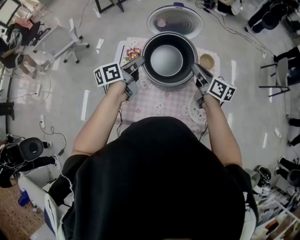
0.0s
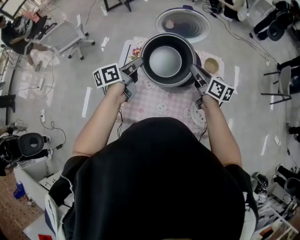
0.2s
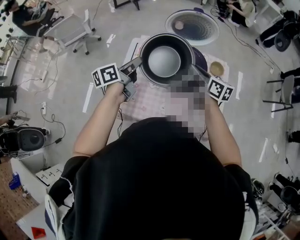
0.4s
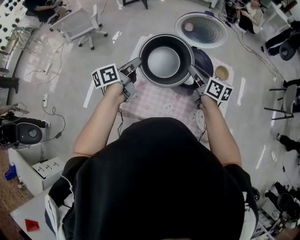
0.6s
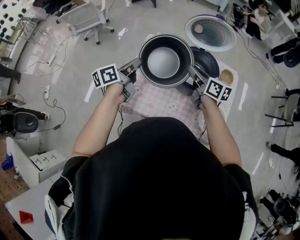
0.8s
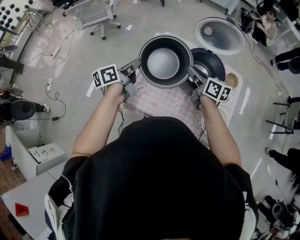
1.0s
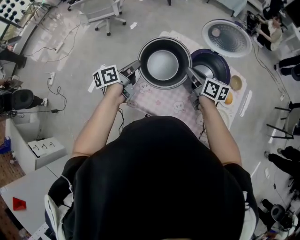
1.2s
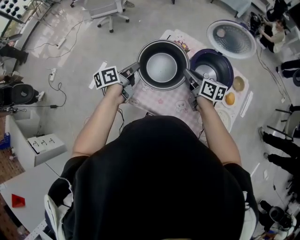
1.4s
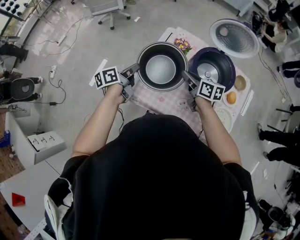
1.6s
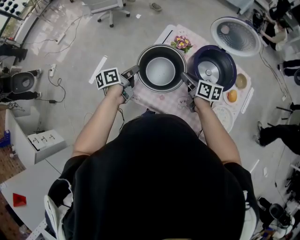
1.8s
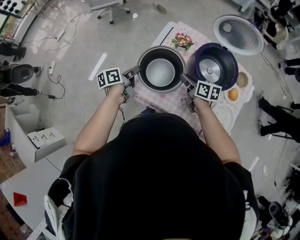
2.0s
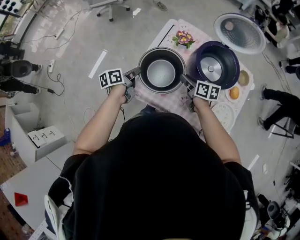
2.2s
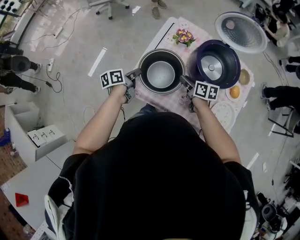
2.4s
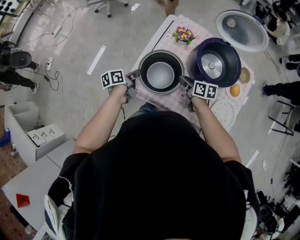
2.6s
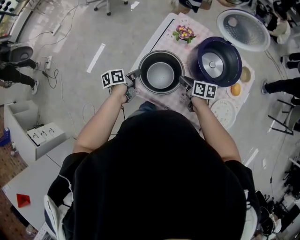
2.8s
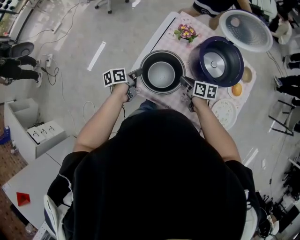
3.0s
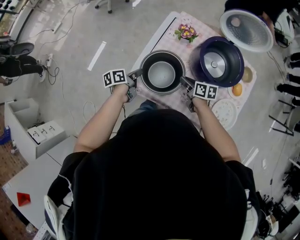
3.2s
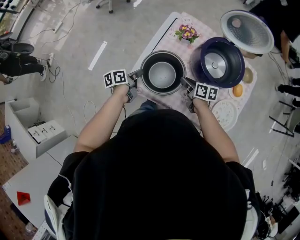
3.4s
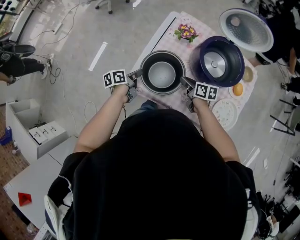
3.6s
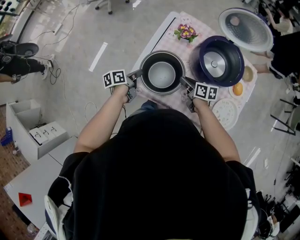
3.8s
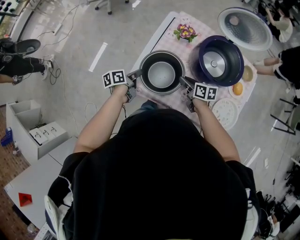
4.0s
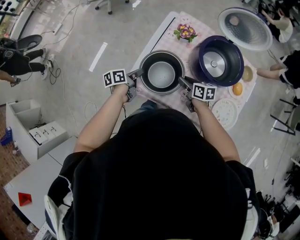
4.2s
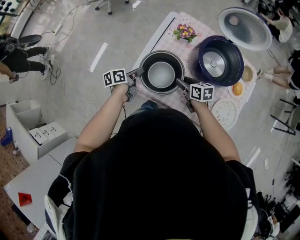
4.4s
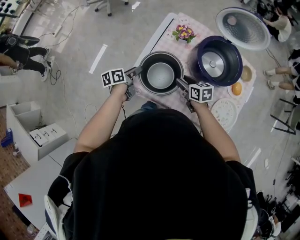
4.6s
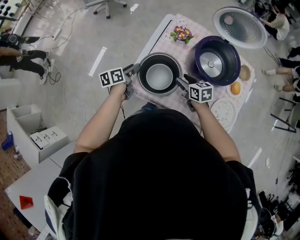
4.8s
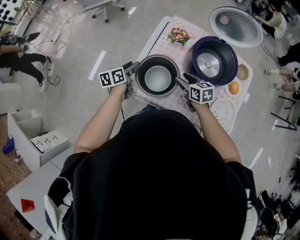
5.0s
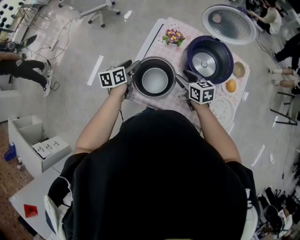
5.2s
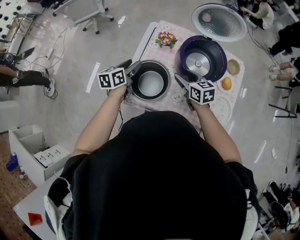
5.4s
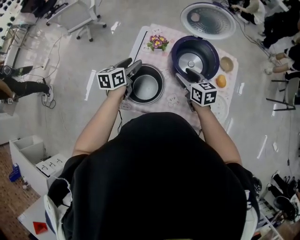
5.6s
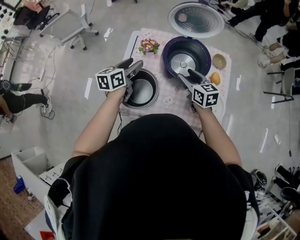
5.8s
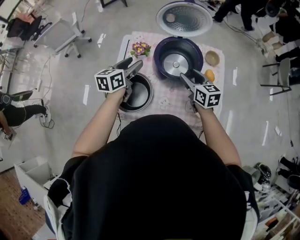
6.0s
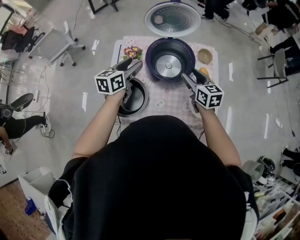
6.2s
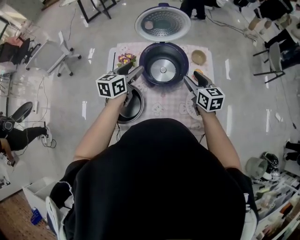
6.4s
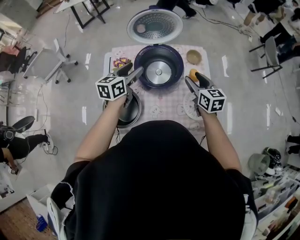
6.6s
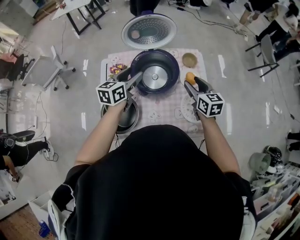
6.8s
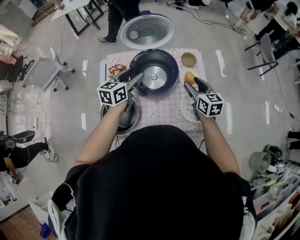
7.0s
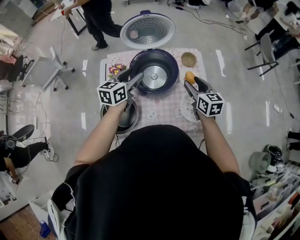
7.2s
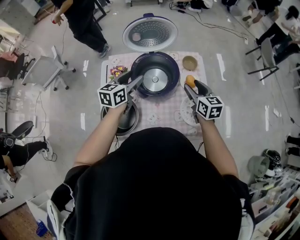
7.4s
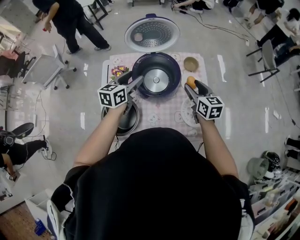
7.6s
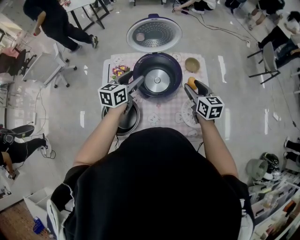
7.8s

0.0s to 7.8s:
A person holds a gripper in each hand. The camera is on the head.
0.0s to 1.6s: The left gripper moves approximately 30 cm, and turns by approximately 30 degrees, while the right gripper changes place by approximately 30 cm, and swivels about 30 degrees.
1.6s to 3.2s: Both grippers move downward, roughly 15 cm.
3.2s to 4.6s: The left gripper opens its fingers. The right gripper opens up.
4.6s to 6.2s: The right gripper shifts by roughly 30 cm, and swivels about 40 degrees; the left gripper moves about 35 cm, and twists some 40 degrees clockwise, seen from behind.
6.2s to 7.8s: The grippers both shift to the right by about 5 cm.

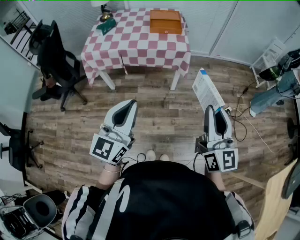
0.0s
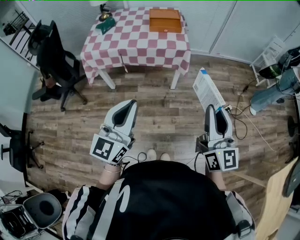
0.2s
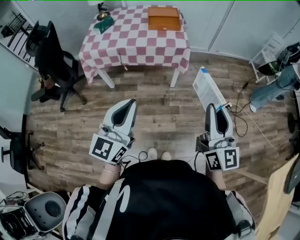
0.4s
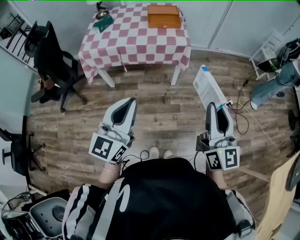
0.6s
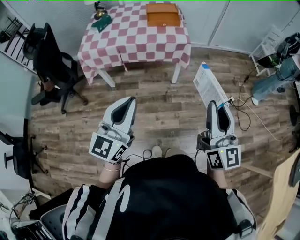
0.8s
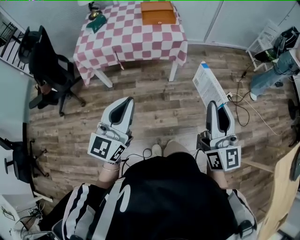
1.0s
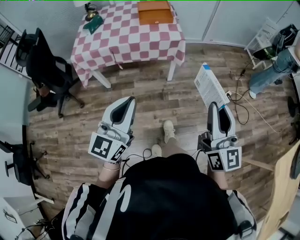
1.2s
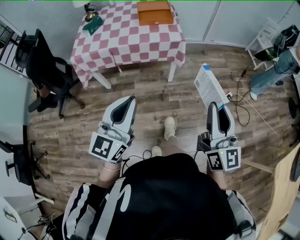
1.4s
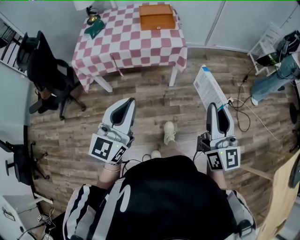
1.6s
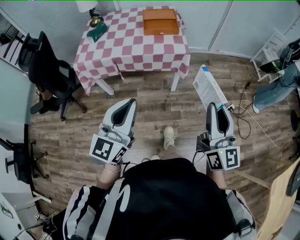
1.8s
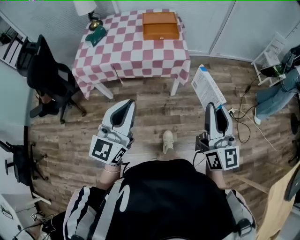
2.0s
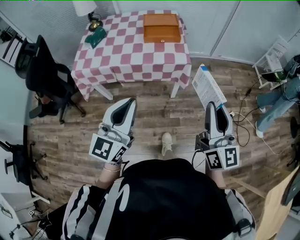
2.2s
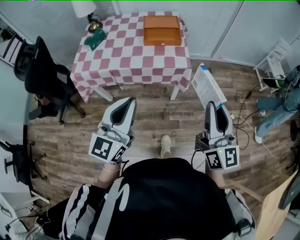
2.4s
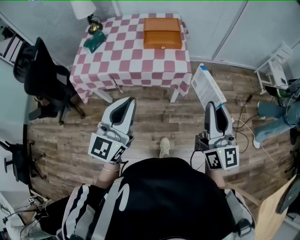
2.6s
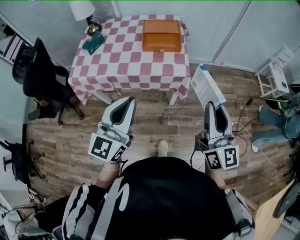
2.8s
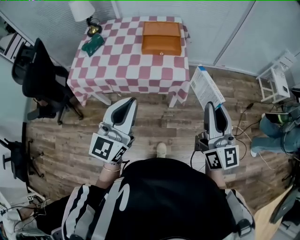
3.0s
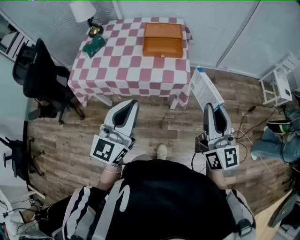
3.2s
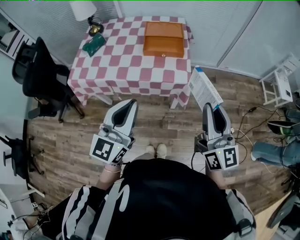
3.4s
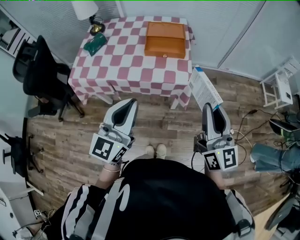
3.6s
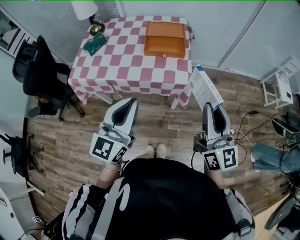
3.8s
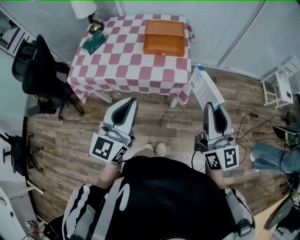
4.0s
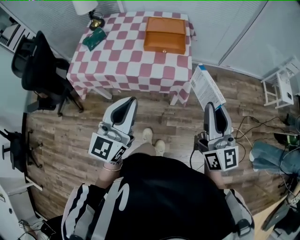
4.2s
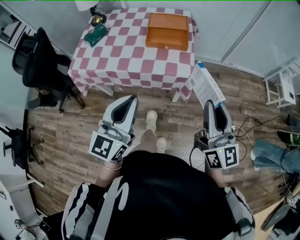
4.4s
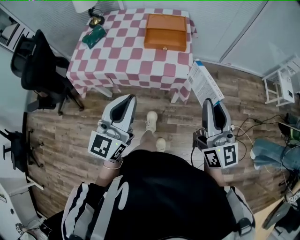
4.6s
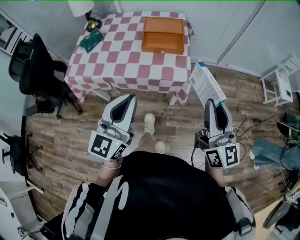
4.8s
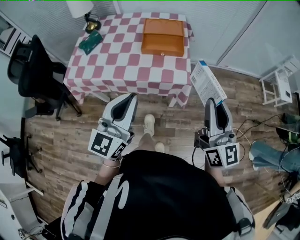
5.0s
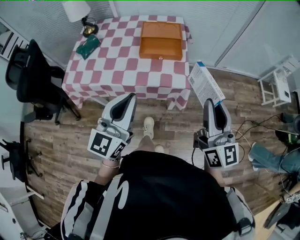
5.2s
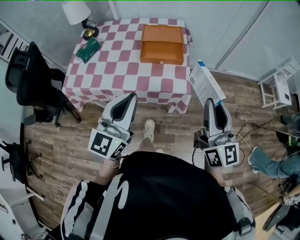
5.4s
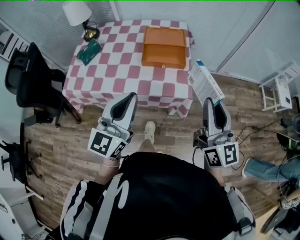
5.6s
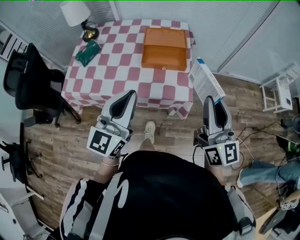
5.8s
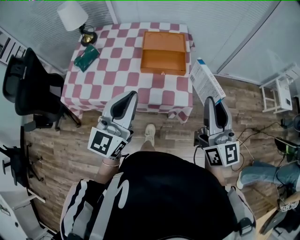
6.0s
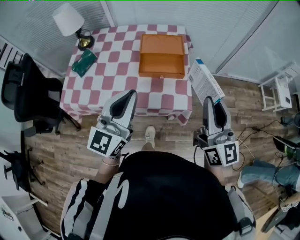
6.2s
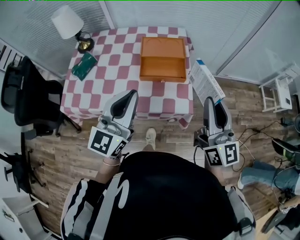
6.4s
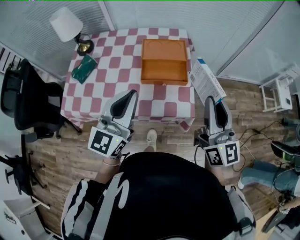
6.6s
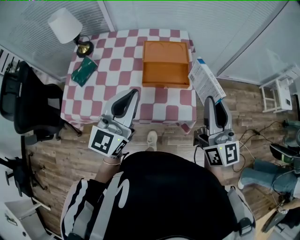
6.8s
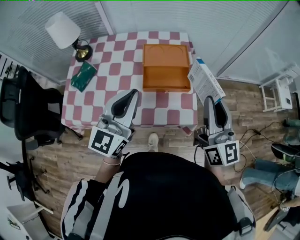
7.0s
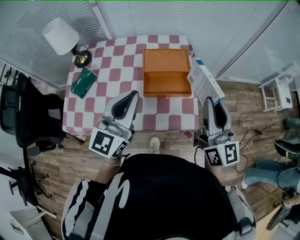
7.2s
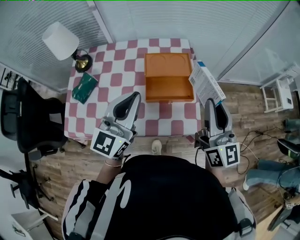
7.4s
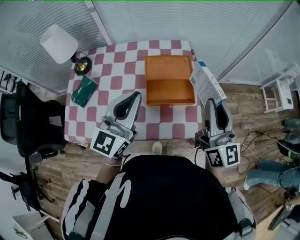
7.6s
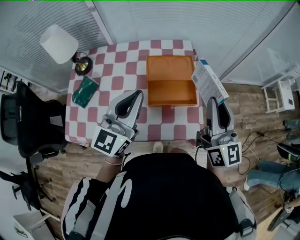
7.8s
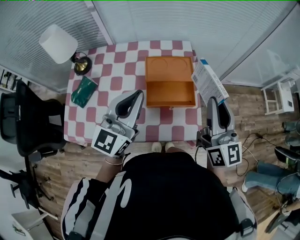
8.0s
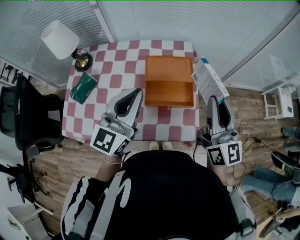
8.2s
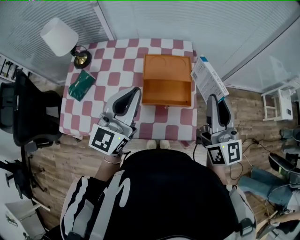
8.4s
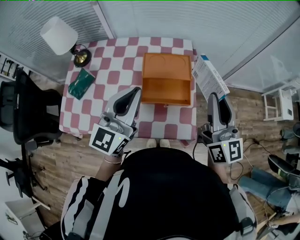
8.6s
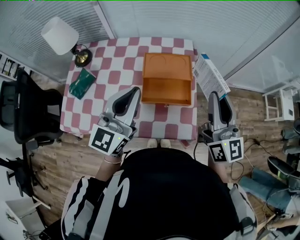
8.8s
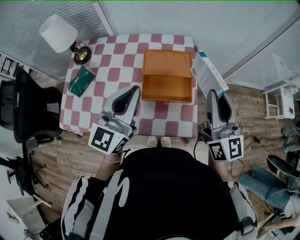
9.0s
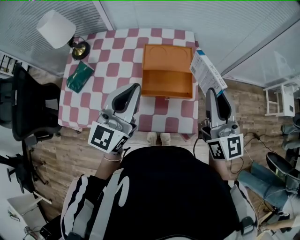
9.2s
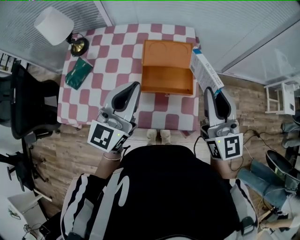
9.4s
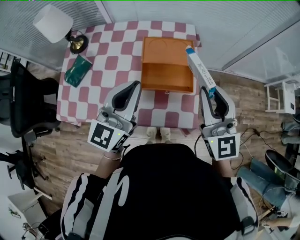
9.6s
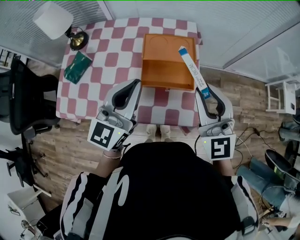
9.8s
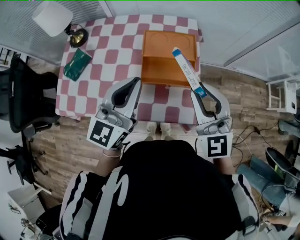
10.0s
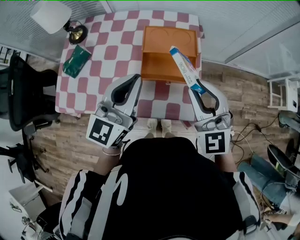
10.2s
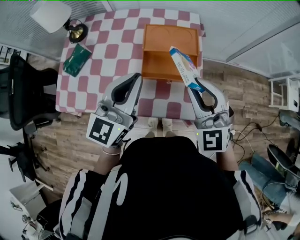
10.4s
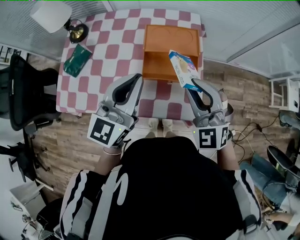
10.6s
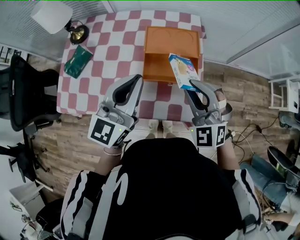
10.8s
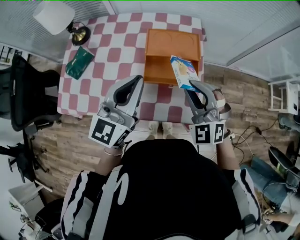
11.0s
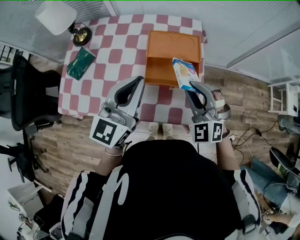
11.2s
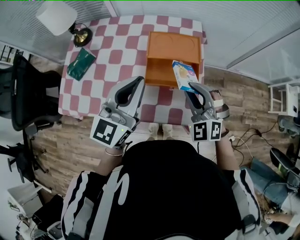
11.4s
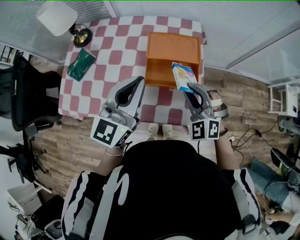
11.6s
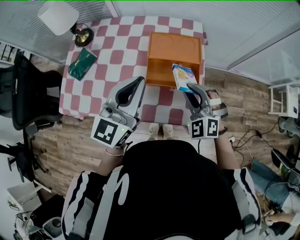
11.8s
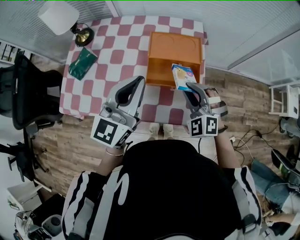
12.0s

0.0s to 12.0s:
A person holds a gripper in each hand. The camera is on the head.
0.0s to 1.6s: The left gripper shifts roughly 5 cm forward.
1.6s to 3.0s: The two grippers go roughly 25 cm forward.
3.0s to 4.4s: The grippers move only a little.
4.4s to 6.0s: The two grippers go approximately 15 cm forward.
6.0s to 7.6s: The right gripper heads forward and to the left, covering approximately 15 cm. Meanwhile the left gripper moves forward, approximately 20 cm.
7.6s to 9.0s: The grippers stay close to where they were, moving slightly.
9.0s to 10.4s: The right gripper goes about 10 cm downward and to the left, and twists some 40 degrees counterclockwise, seen from behind.
10.4s to 12.0s: The right gripper goes about 10 cm downward, and swivels some 30 degrees.

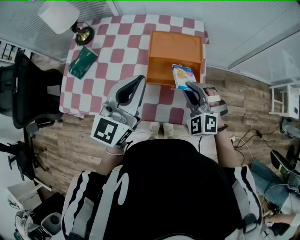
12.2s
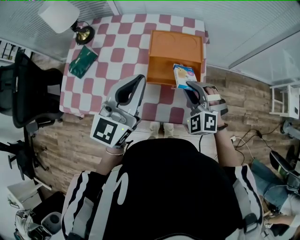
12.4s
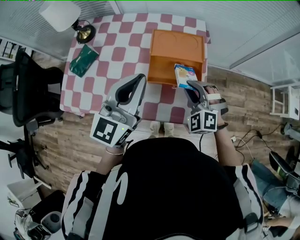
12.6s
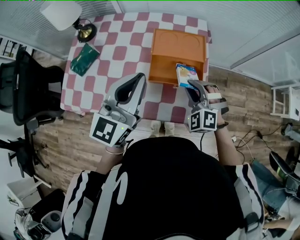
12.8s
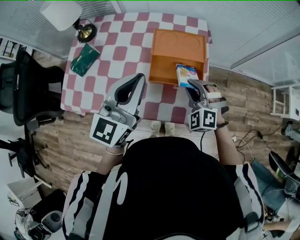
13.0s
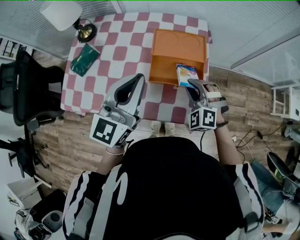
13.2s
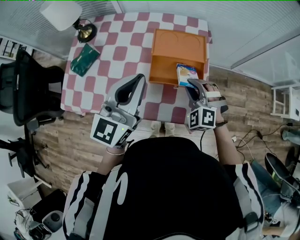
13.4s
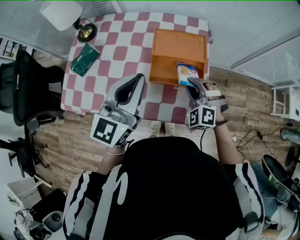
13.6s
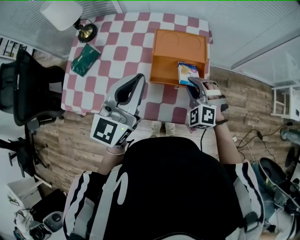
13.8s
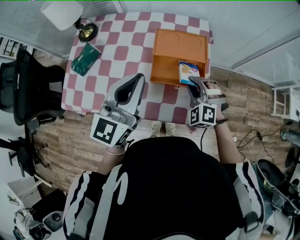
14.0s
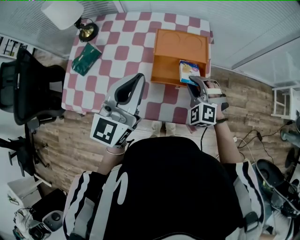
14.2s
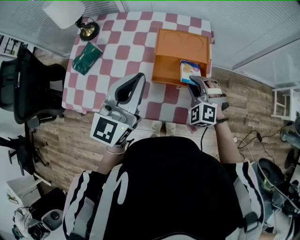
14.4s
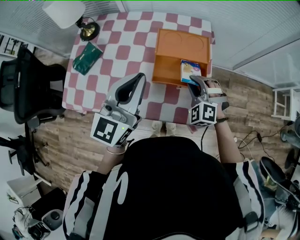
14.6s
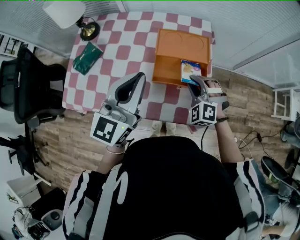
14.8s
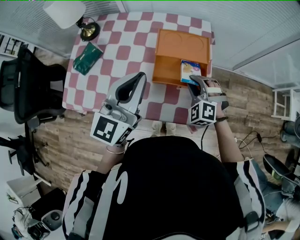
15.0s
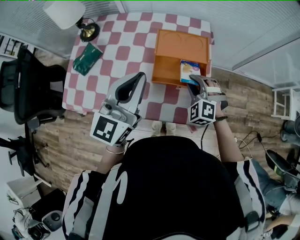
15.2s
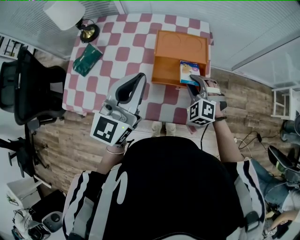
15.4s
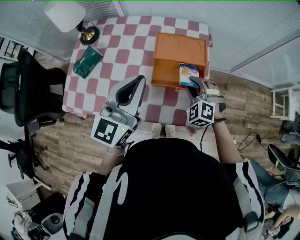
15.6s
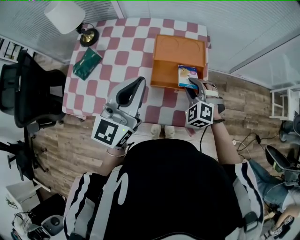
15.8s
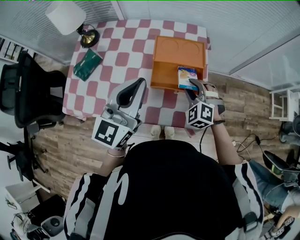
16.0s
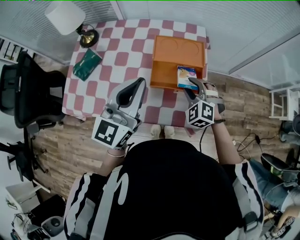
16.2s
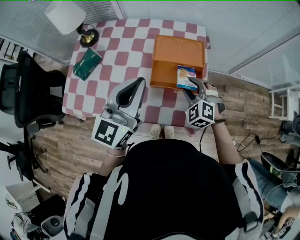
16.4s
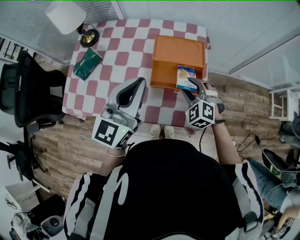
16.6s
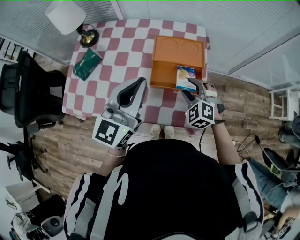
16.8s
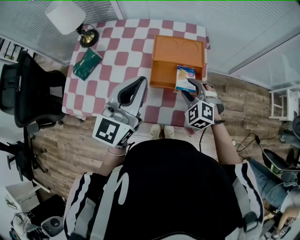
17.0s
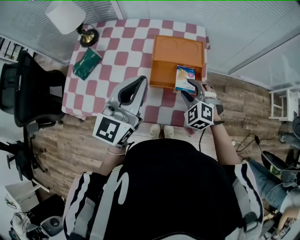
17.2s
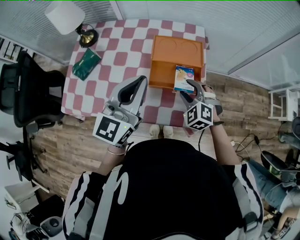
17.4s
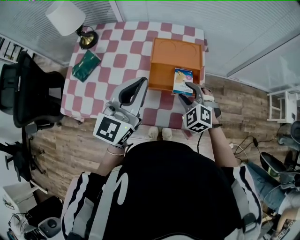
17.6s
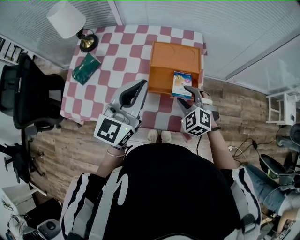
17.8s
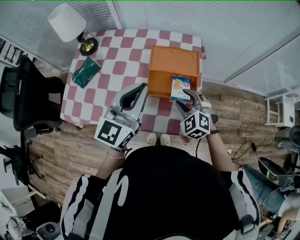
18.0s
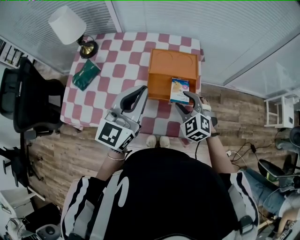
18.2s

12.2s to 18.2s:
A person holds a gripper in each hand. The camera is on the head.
12.2s to 13.8s: The grippers move only a little.
13.8s to 15.2s: There are only small adjustments of the grippers.
15.2s to 16.6s: The right gripper opens its fingers.
16.6s to 18.2s: The grippers make only small movements.
